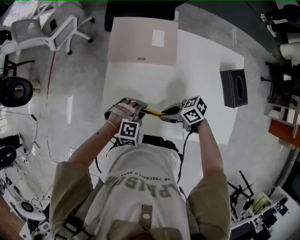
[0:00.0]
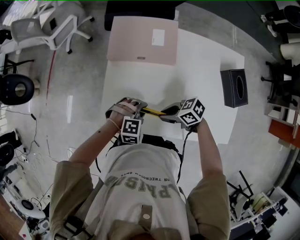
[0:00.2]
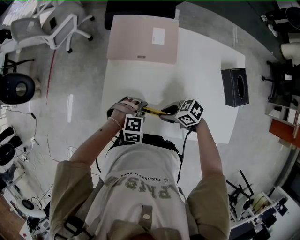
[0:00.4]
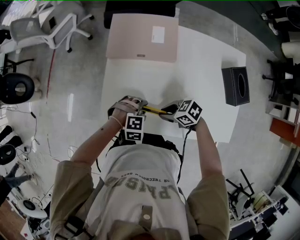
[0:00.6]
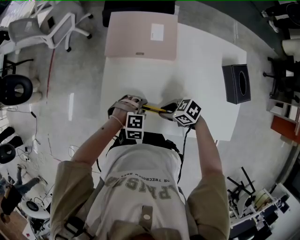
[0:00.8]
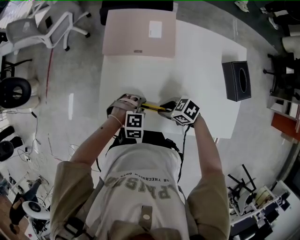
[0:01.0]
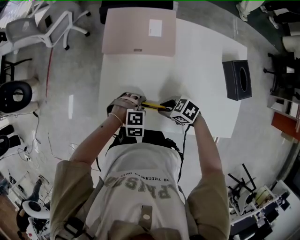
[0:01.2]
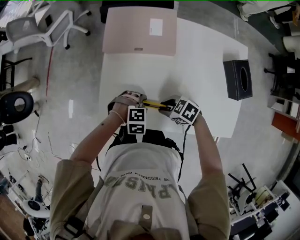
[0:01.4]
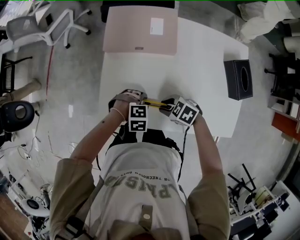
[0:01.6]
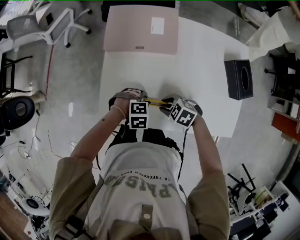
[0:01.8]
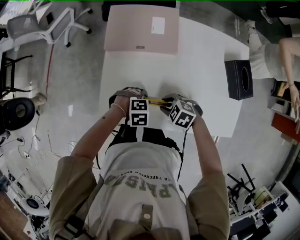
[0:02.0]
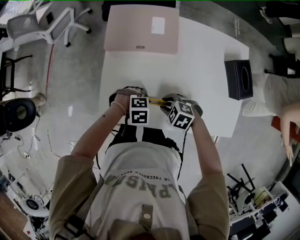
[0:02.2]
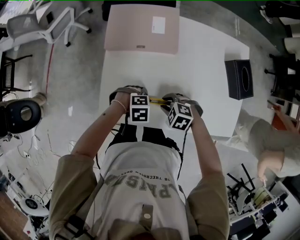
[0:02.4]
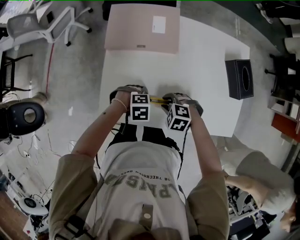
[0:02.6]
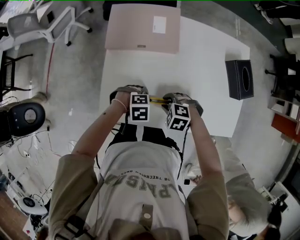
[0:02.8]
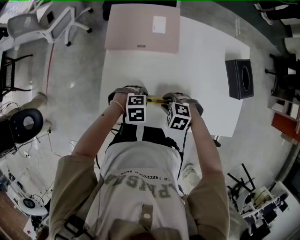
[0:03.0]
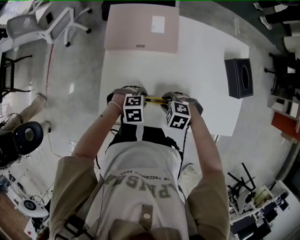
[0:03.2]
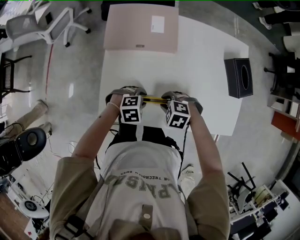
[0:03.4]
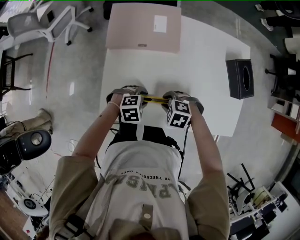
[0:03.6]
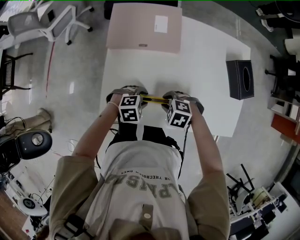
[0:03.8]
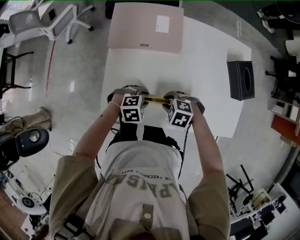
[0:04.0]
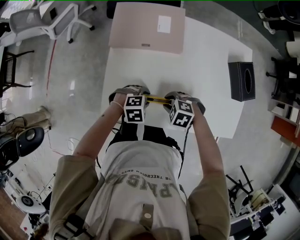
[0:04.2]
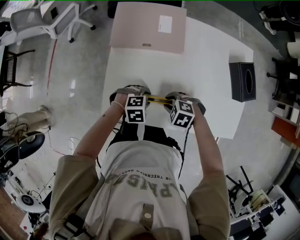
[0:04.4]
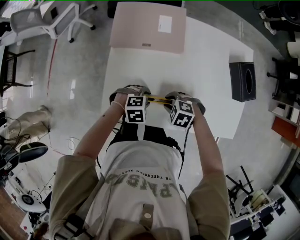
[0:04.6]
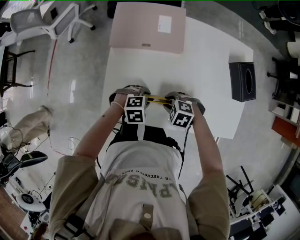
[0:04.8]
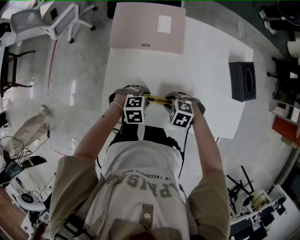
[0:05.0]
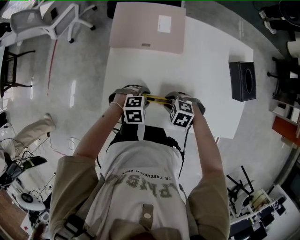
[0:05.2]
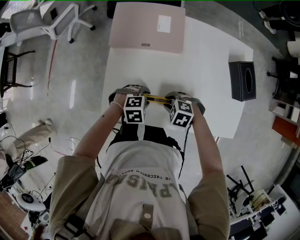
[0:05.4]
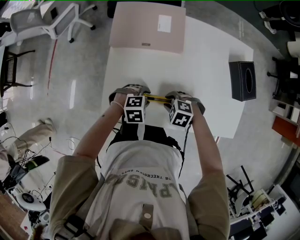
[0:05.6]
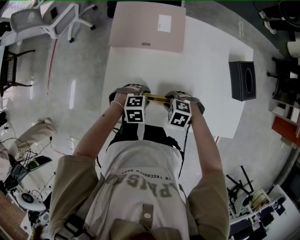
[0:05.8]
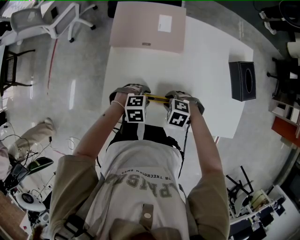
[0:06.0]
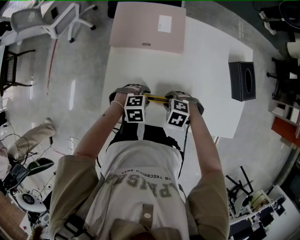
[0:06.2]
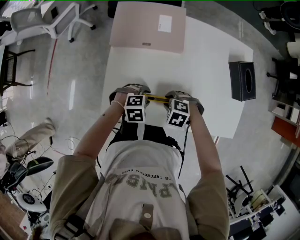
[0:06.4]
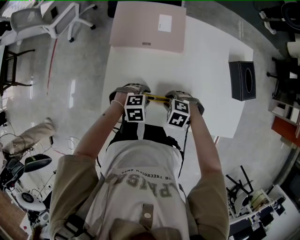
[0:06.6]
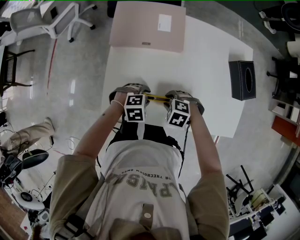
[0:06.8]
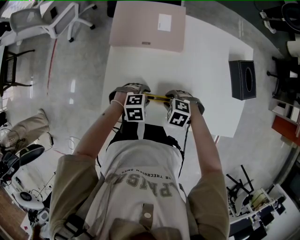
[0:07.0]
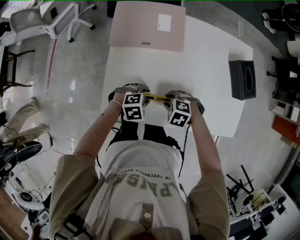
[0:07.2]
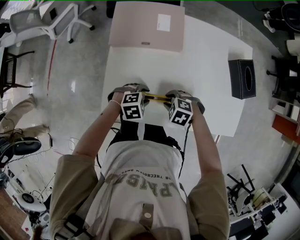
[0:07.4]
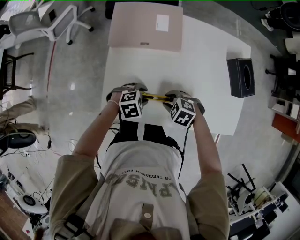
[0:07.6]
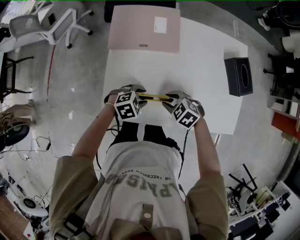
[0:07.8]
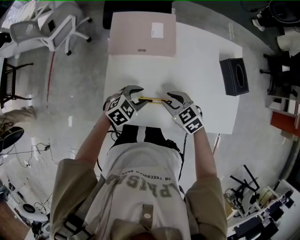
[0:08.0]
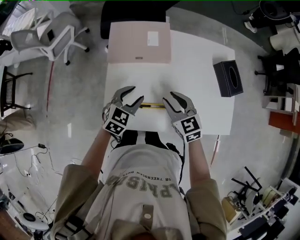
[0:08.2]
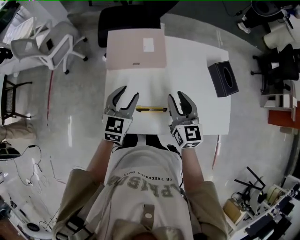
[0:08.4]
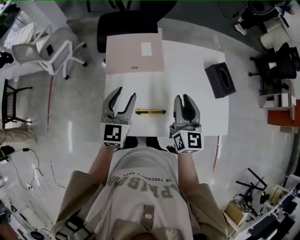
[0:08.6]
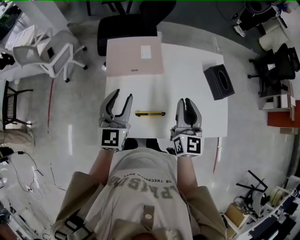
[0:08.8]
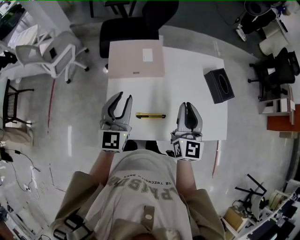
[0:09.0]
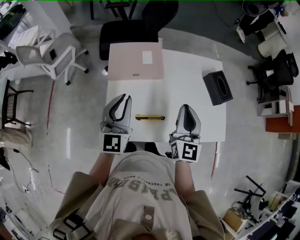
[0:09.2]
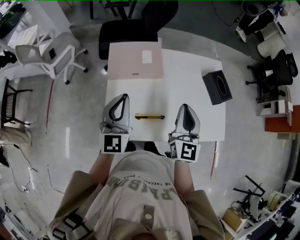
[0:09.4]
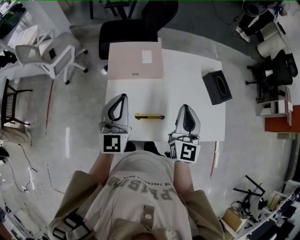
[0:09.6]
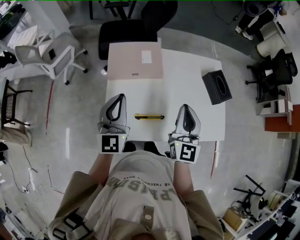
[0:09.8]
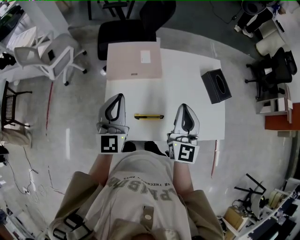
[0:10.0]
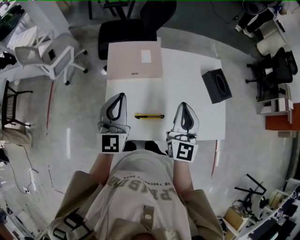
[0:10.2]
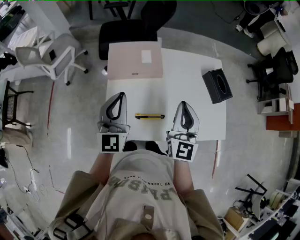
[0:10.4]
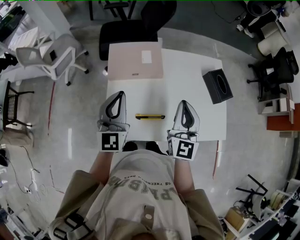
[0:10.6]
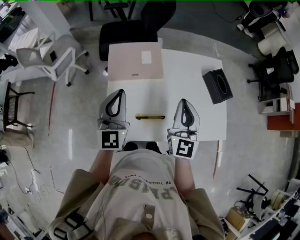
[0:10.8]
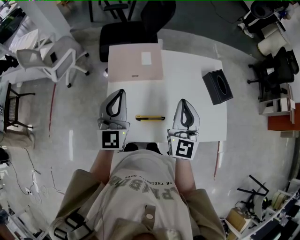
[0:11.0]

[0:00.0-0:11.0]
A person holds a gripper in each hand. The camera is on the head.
0:00.0 to 0:01.6: The grippers both shift downward by roughly 5 cm. The right gripper turns by approximately 30 degrees. The left gripper rotates about 20 degrees.
0:01.6 to 0:03.2: The right gripper changes its angle by roughly 20 degrees.
0:03.2 to 0:06.2: The grippers stay close to where they were, moving slightly.
0:06.2 to 0:07.8: The right gripper changes its angle by some 20 degrees.
0:07.8 to 0:09.4: The grippers both shift upward by about 30 cm. The left gripper tips its fingers upward by approximately 60 degrees, and closes up; the right gripper angles its fingers upward, by some 60 degrees, and closes up.
0:09.4 to 0:11.0: The grippers stay close to where they were, moving slightly.

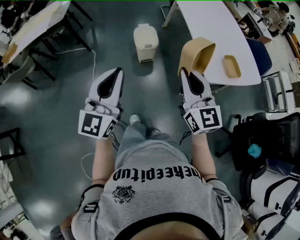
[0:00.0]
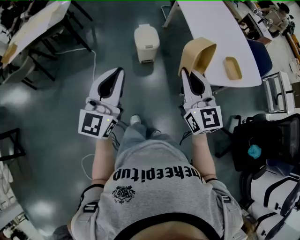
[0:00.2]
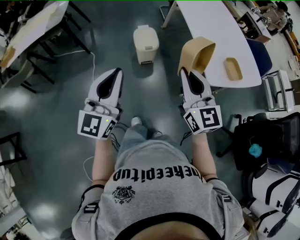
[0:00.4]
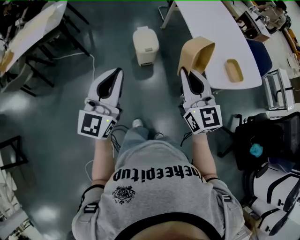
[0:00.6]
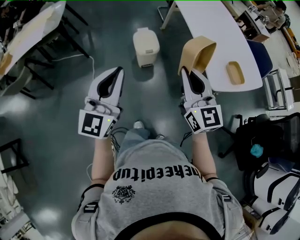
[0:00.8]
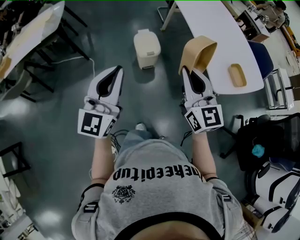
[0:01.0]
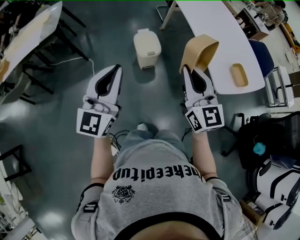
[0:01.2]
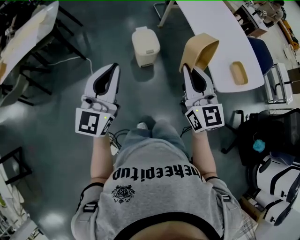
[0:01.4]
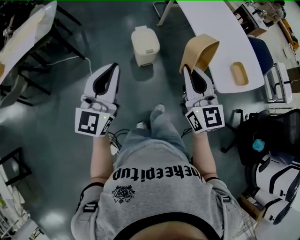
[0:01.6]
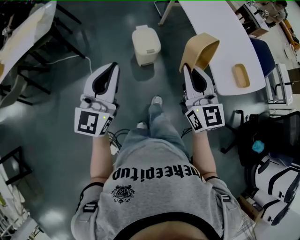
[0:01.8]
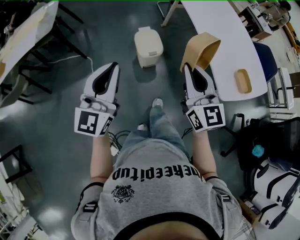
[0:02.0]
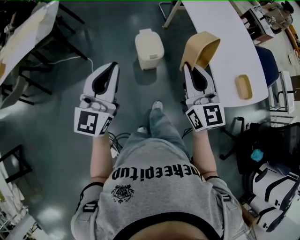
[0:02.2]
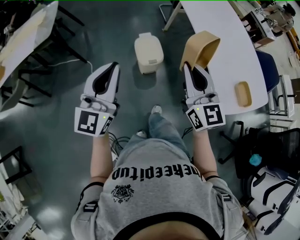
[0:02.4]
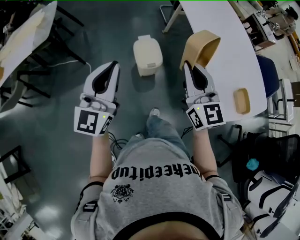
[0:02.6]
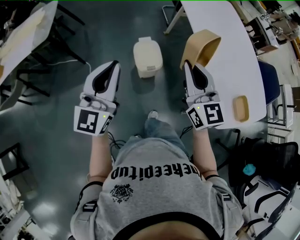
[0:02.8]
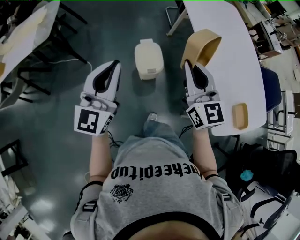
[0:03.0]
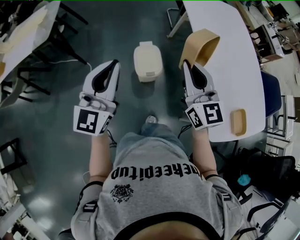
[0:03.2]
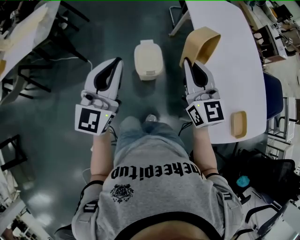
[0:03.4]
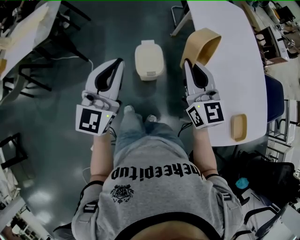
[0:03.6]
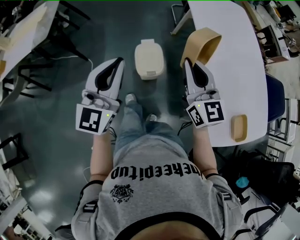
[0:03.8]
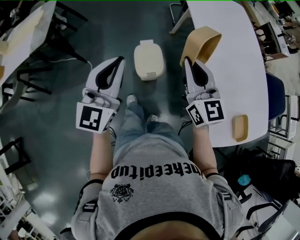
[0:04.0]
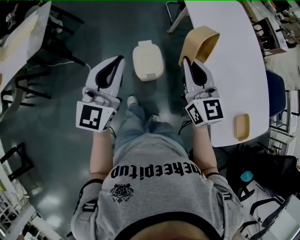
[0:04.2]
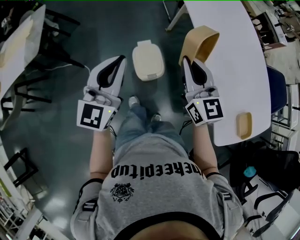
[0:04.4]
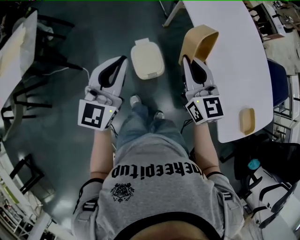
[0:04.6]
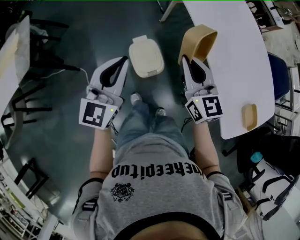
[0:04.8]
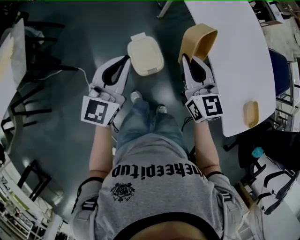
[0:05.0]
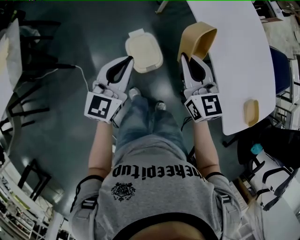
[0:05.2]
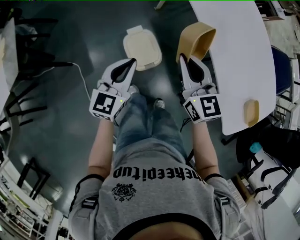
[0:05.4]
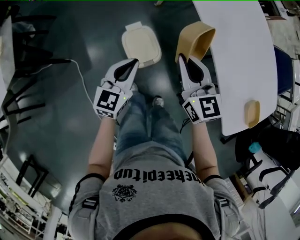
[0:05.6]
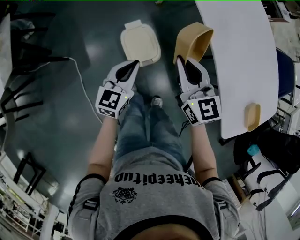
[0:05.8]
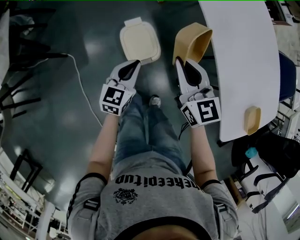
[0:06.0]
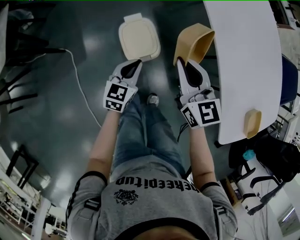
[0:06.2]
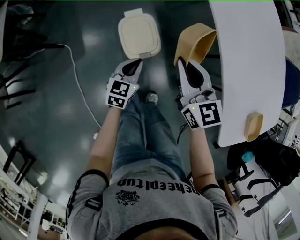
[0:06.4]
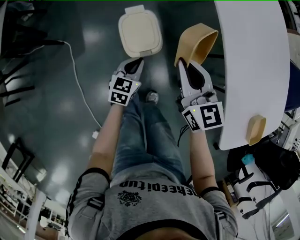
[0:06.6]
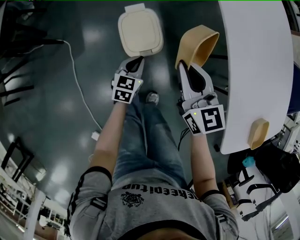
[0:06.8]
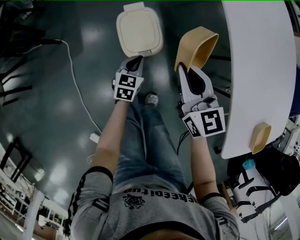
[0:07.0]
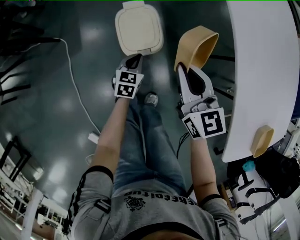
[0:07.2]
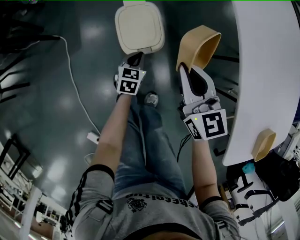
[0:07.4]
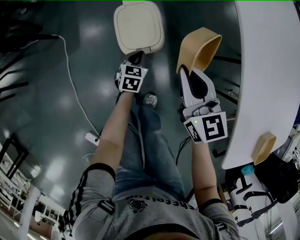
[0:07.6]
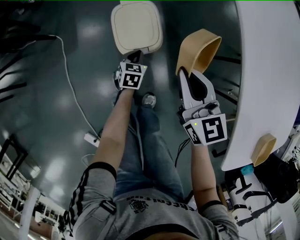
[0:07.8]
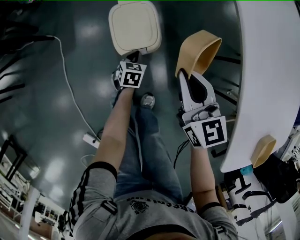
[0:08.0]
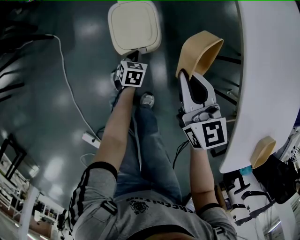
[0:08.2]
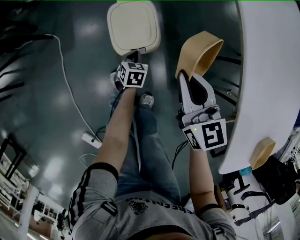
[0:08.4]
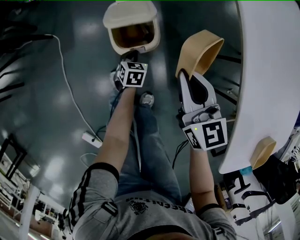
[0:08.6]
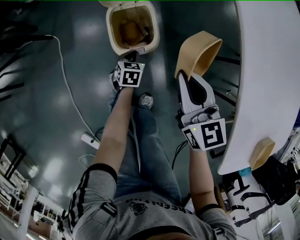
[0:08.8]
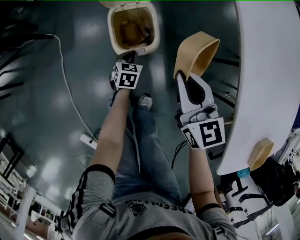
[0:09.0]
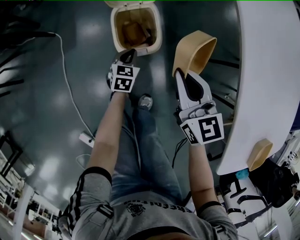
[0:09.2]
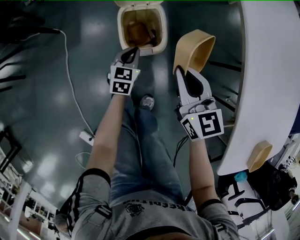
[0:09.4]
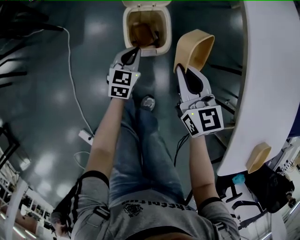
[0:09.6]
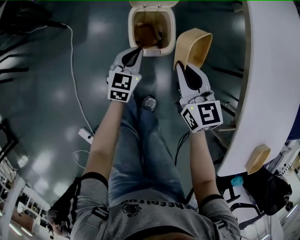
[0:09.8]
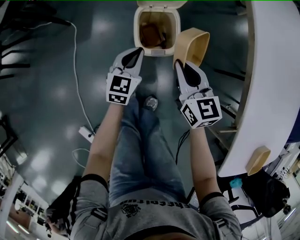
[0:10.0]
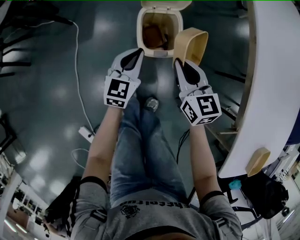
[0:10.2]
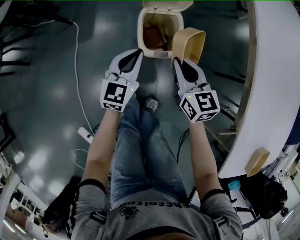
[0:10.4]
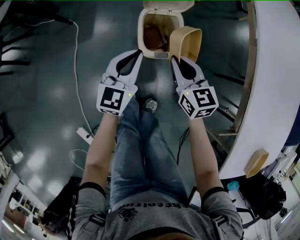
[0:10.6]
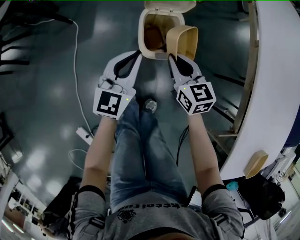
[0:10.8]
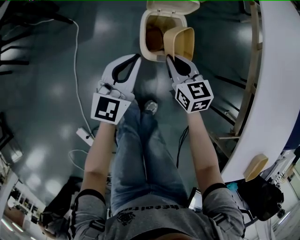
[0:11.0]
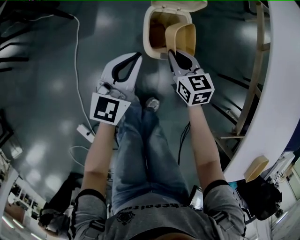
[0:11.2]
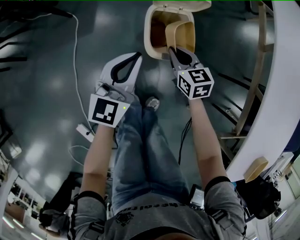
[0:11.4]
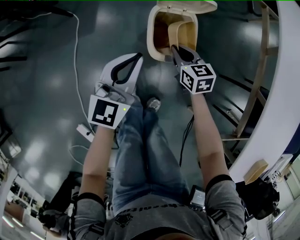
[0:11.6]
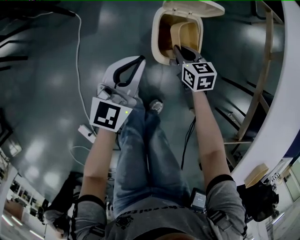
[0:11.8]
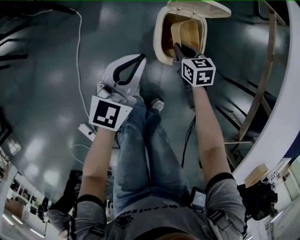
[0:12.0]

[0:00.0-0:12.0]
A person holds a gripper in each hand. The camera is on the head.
0:00.0 to 0:01.6: The two grippers go about 15 cm forward and to the left.
0:01.6 to 0:03.0: Both grippers move forward, some 20 cm.
0:03.0 to 0:04.4: Both grippers move forward, approximately 15 cm.
0:04.4 to 0:06.0: The left gripper is displaced downward by approximately 30 cm, and turns by some 30 degrees. The right gripper goes approximately 15 cm downward.
0:06.0 to 0:07.6: The left gripper heads downward, covering some 30 cm, and rotates approximately 30 degrees, while the right gripper heads downward, covering approximately 15 cm.
0:07.6 to 0:09.0: The grippers stay close to where they were, moving slightly.
0:09.0 to 0:10.4: The left gripper moves upward, some 20 cm, and points its fingers some 30 degrees further upward; the right gripper is displaced to the left and downward by approximately 10 cm.
0:10.4 to 0:12.0: The right gripper heads downward and forward, covering roughly 20 cm, and turns by approximately 20 degrees. The left gripper heads to the left, covering some 5 cm.

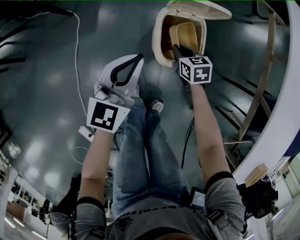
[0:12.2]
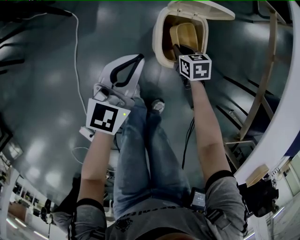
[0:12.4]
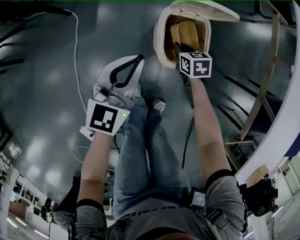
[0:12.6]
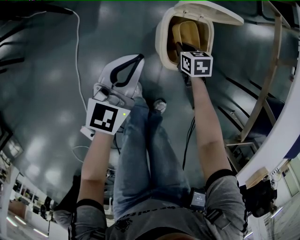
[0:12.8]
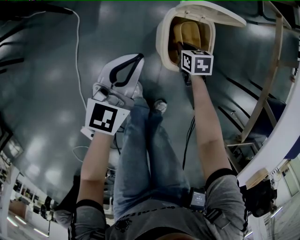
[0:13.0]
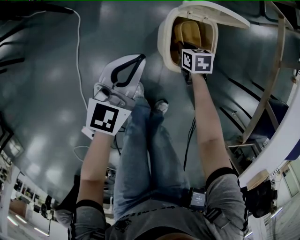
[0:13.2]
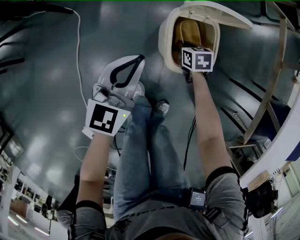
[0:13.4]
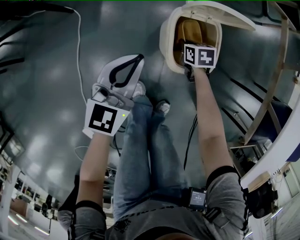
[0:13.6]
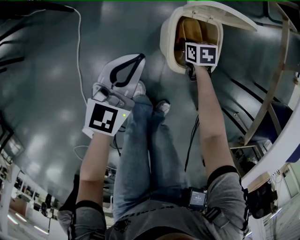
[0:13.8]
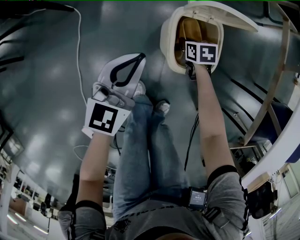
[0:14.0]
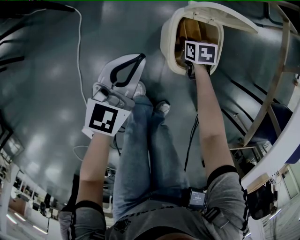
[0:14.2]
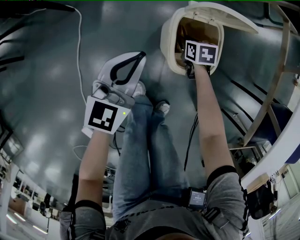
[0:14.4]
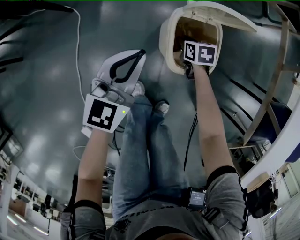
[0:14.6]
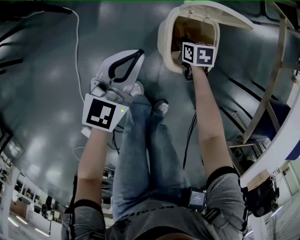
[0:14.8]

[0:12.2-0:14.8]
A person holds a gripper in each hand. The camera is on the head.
0:12.2 to 0:13.4: The right gripper heads downward, covering about 10 cm, while the left gripper changes place by about 5 cm.
0:13.4 to 0:14.8: The right gripper opens its fingers.
